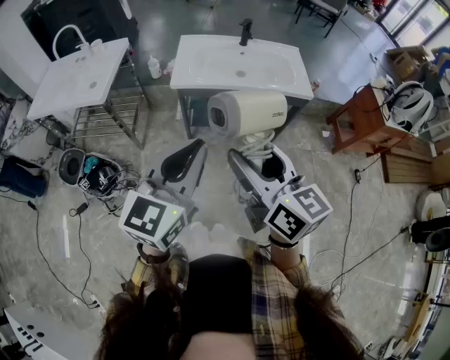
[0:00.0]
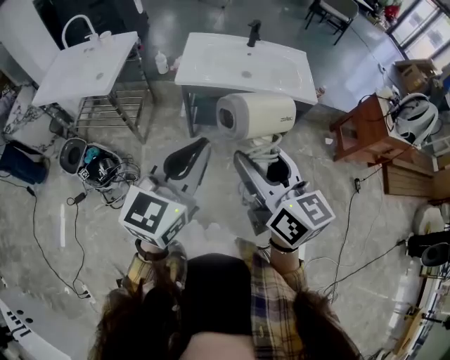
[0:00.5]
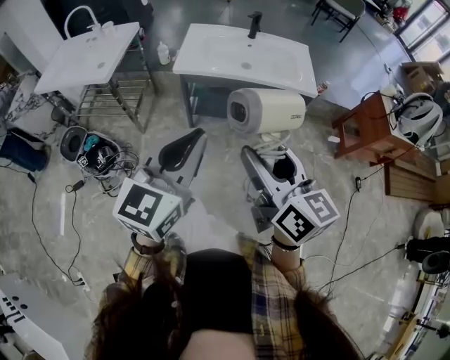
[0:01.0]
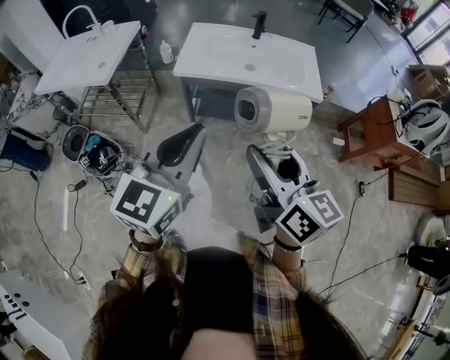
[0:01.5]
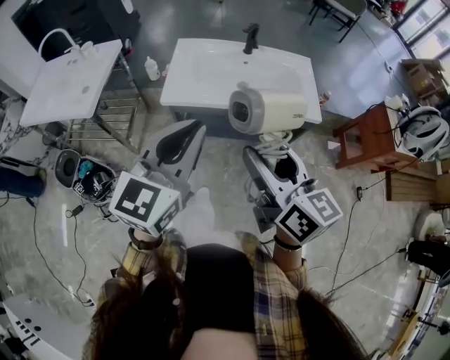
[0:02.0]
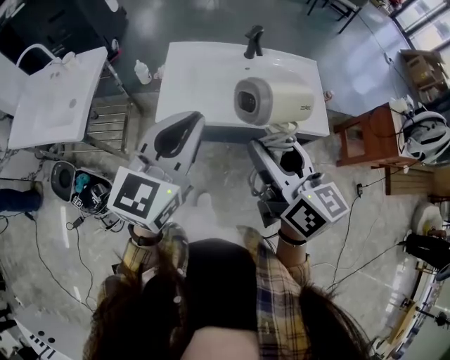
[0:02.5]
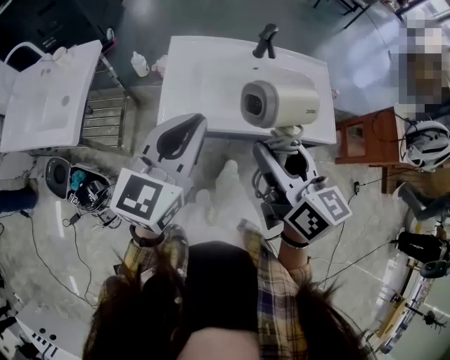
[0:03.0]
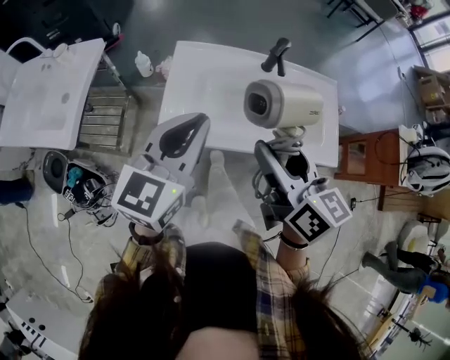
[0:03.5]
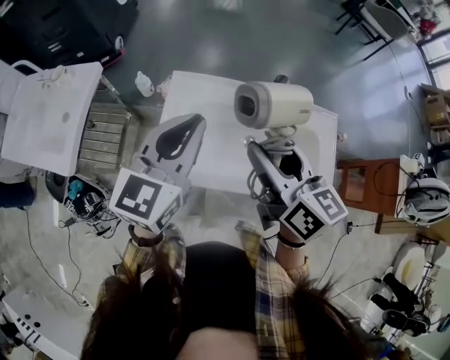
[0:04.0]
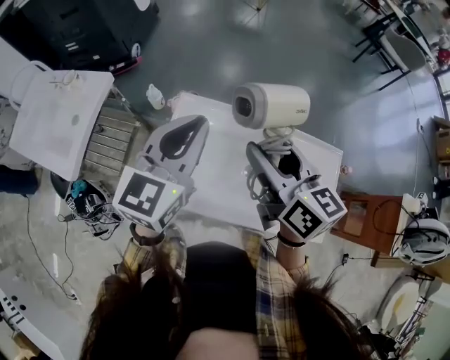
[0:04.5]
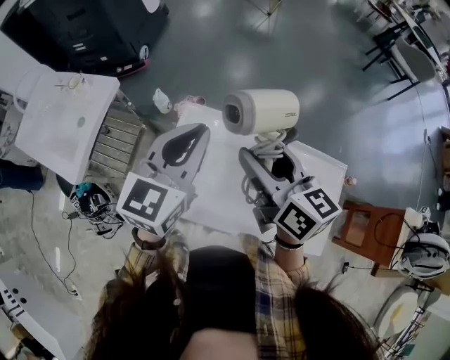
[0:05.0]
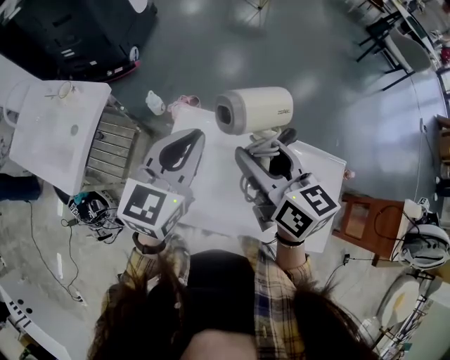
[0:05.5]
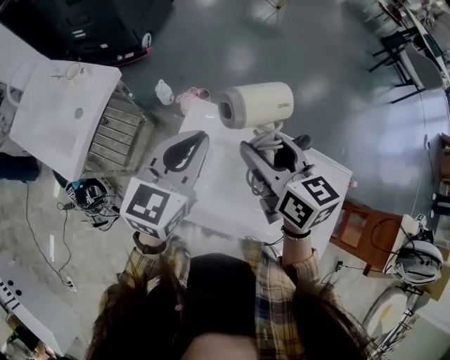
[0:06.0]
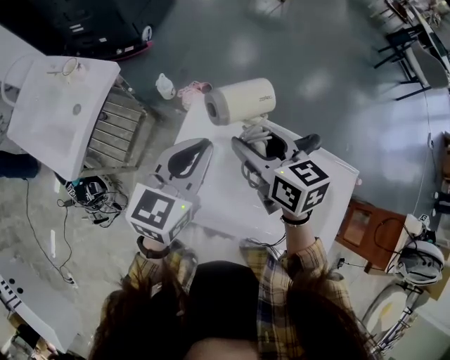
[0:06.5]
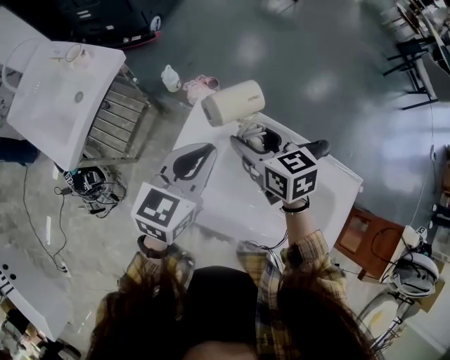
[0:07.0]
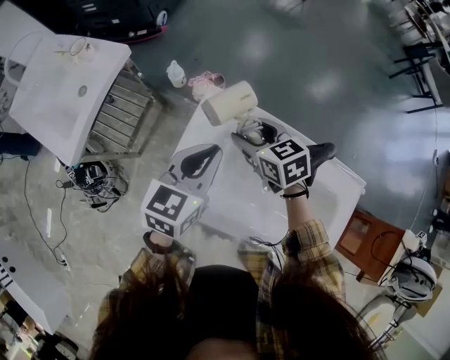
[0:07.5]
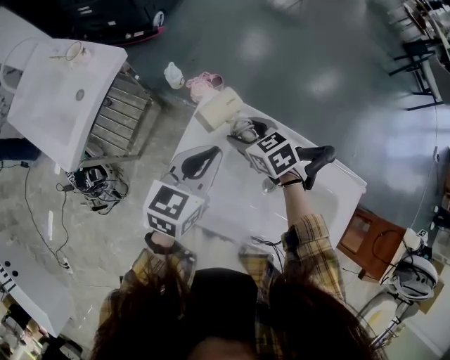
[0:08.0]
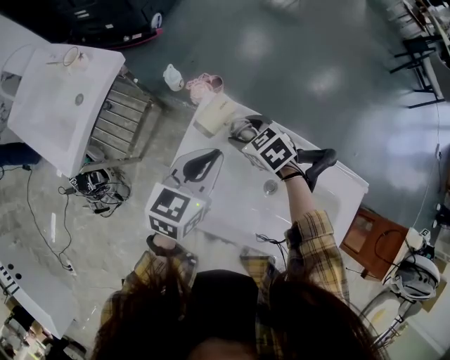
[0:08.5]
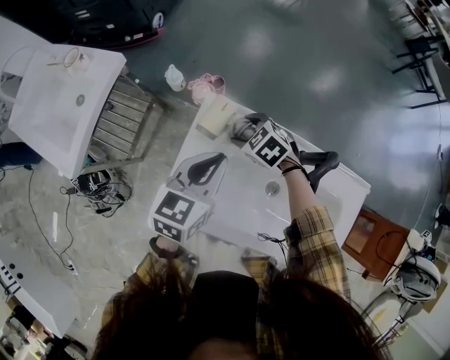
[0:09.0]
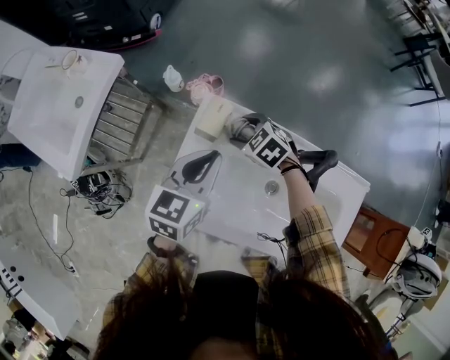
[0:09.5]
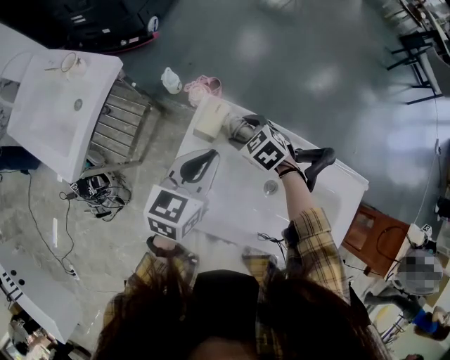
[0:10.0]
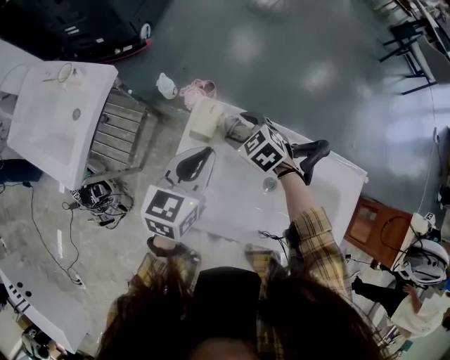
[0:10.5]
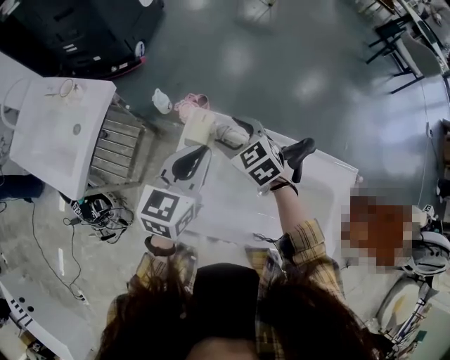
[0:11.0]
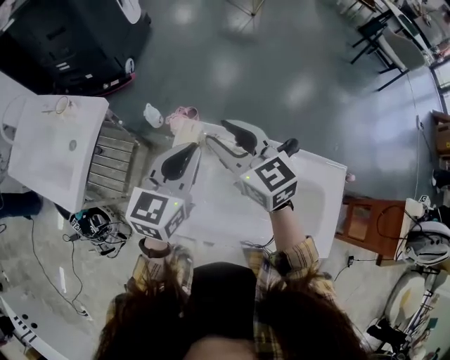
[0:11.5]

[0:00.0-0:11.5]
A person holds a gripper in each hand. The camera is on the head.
0:00.0 to 0:02.0: The left gripper moves forward, some 15 cm. The right gripper moves forward and to the right, roughly 15 cm.
0:02.0 to 0:04.0: Both grippers travel together forward, about 35 cm.
0:04.0 to 0:06.0: The grippers both shift forward by approximately 15 cm.
0:06.0 to 0:07.5: The left gripper is displaced downward by approximately 10 cm, while the right gripper moves downward, roughly 20 cm, and rotates roughly 30 degrees.
0:07.5 to 0:09.5: The right gripper moves downward, approximately 10 cm, and changes its angle by some 30 degrees.
0:09.5 to 0:11.5: The right gripper shifts roughly 25 cm upward, and angles its fingers upward, by about 40 degrees. Meanwhile the left gripper moves upward, some 10 cm.

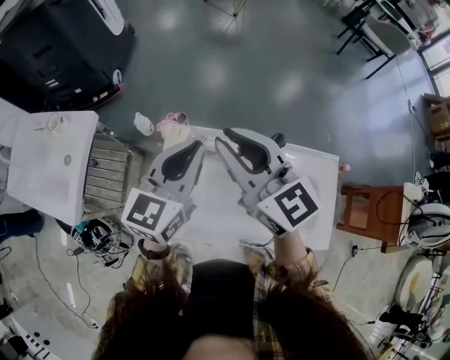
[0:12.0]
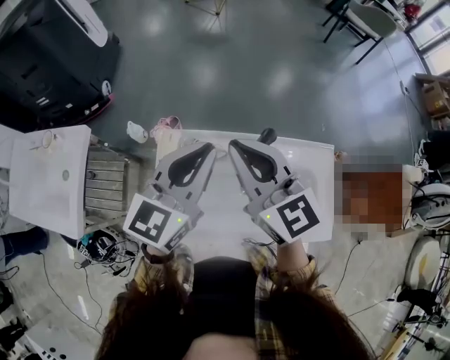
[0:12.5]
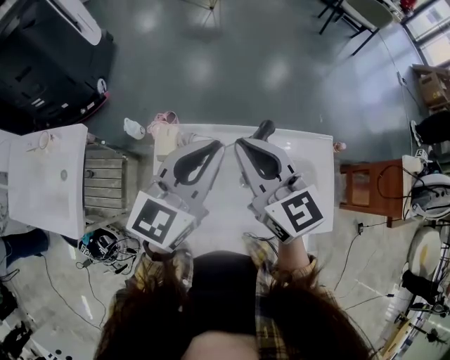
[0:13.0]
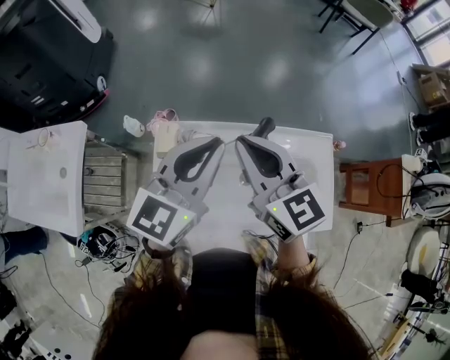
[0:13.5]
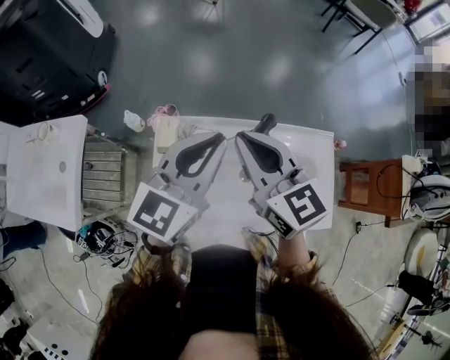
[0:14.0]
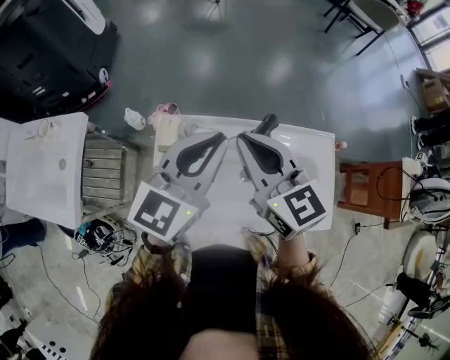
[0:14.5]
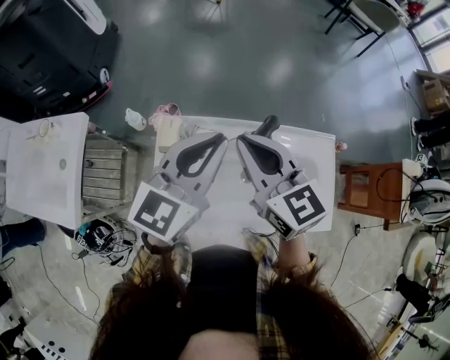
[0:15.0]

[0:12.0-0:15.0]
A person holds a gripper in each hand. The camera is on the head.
0:12.0 to 0:13.5: The grippers both shift to the right by about 5 cm.
0:13.5 to 0:15.0: Both grippers stay about where they are.

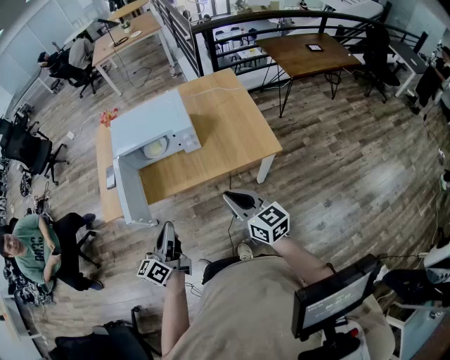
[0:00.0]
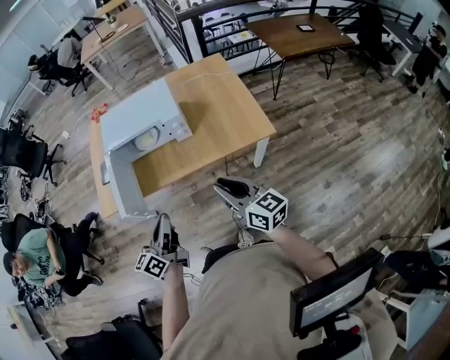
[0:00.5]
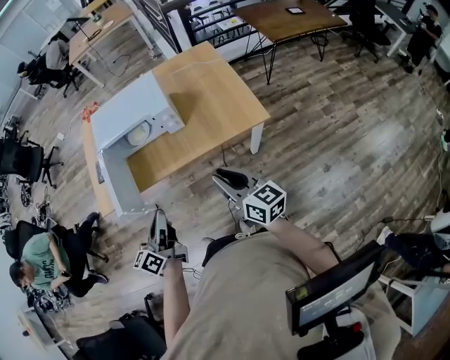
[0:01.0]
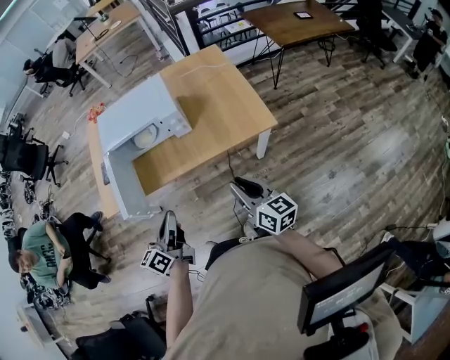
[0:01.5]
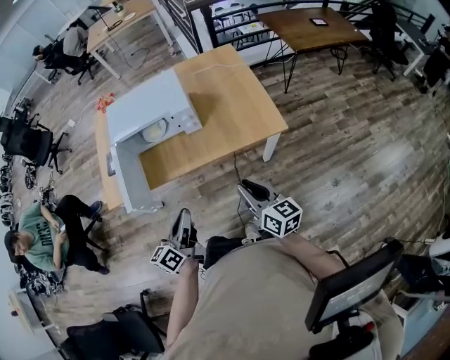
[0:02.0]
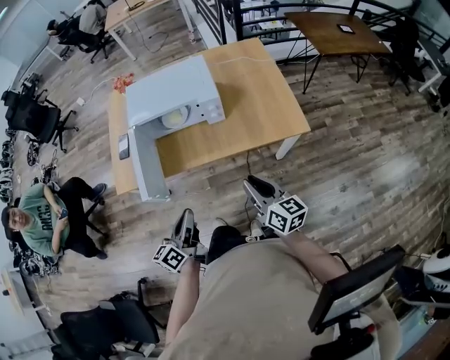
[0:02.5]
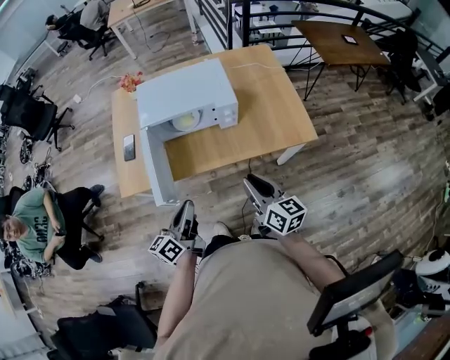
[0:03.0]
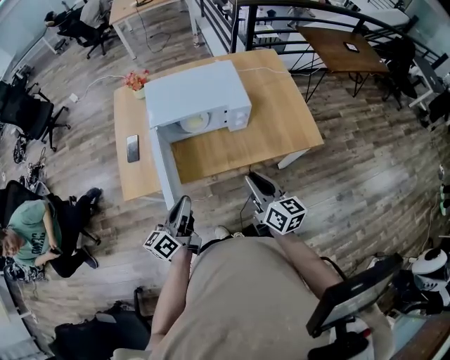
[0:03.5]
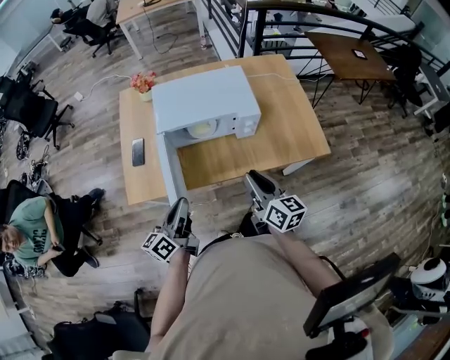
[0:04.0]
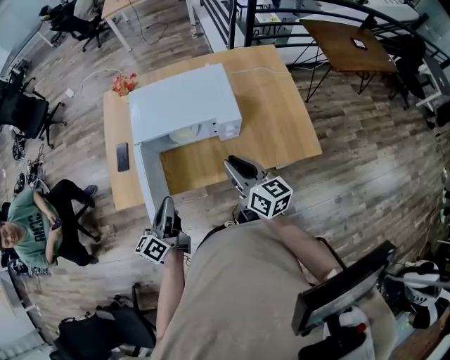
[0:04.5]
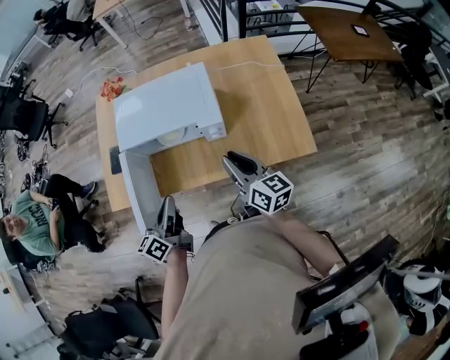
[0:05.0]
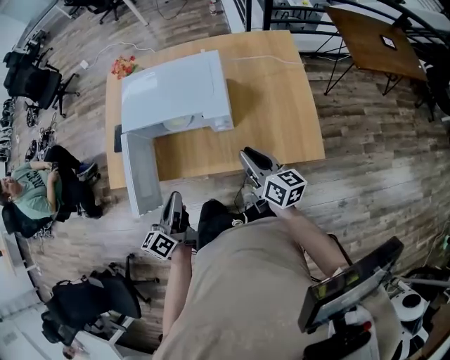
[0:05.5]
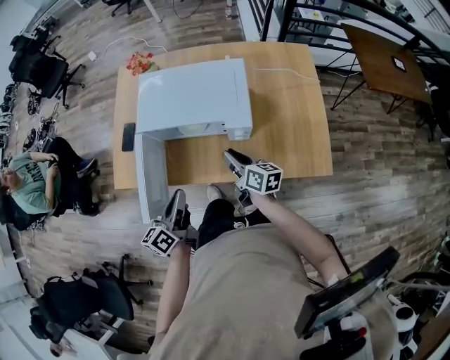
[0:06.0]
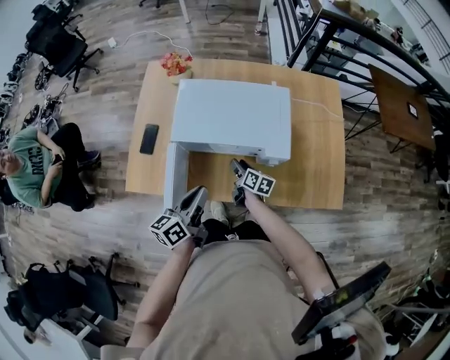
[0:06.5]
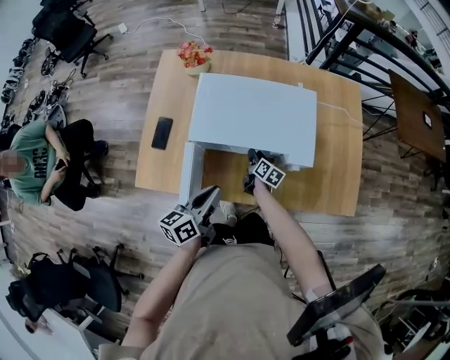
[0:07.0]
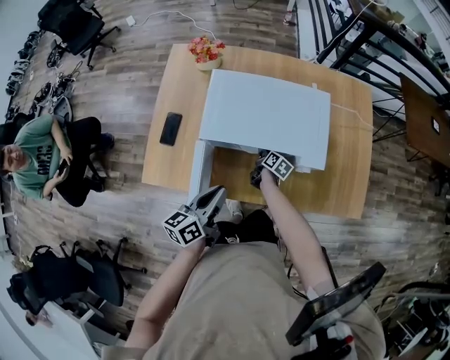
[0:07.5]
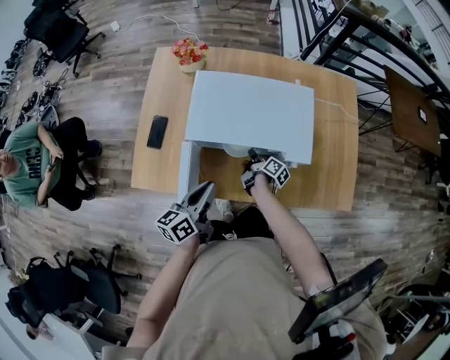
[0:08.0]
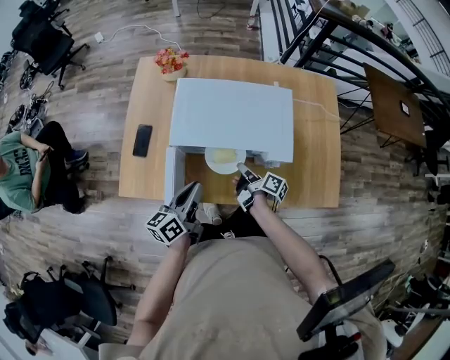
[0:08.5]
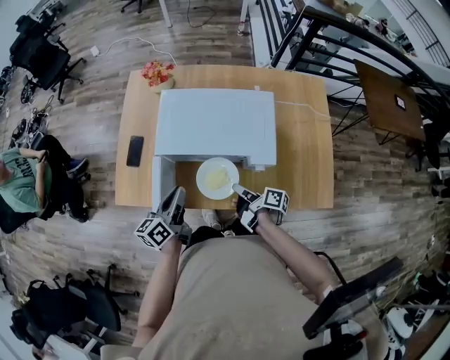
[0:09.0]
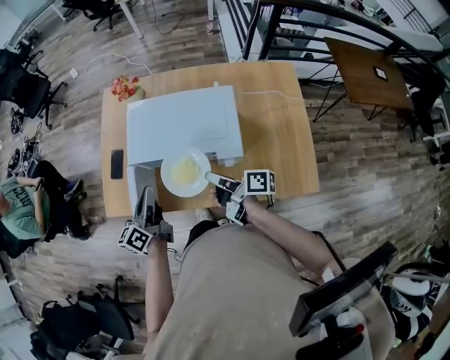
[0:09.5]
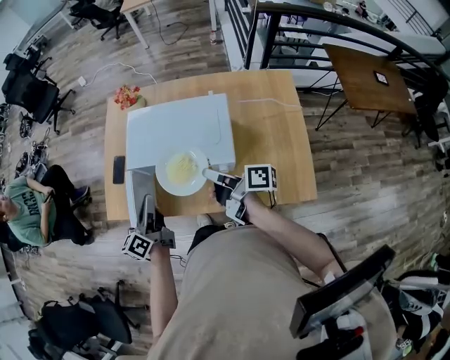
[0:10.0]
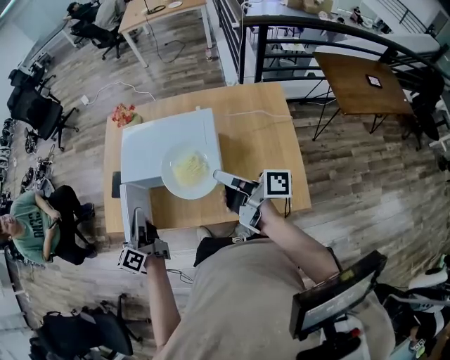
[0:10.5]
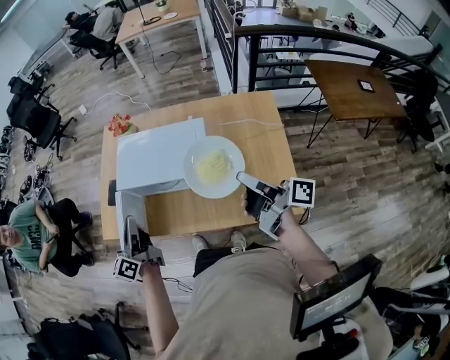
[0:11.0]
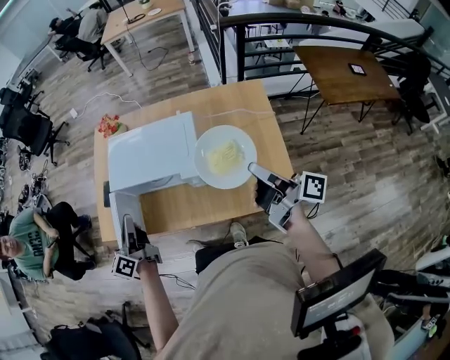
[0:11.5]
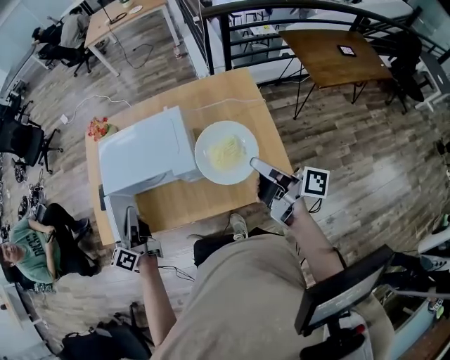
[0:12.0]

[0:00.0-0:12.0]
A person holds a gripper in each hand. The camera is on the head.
0:00.0 to 0:02.0: The left gripper is displaced to the right by some 5 cm. Meanwhile the right gripper is displaced downward by some 5 cm.
0:02.0 to 0:04.0: Both grippers move to the left and forward, some 25 cm.
0:04.0 to 0:06.0: The right gripper travels forward and downward by roughly 20 cm, goes to the right and returns, some 20 cm each way, and rotates about 30 degrees. The left gripper is displaced to the right and forward by some 15 cm.
0:06.0 to 0:08.0: The right gripper moves downward, forward and to the left, roughly 25 cm, and rotates some 40 degrees; the left gripper shifts approximately 15 cm forward and to the left.
0:08.0 to 0:10.0: The left gripper moves upward, roughly 5 cm, and rotates about 20 degrees. Meanwhile the right gripper moves upward, some 30 cm, and turns by approximately 40 degrees.
0:10.0 to 0:12.0: The left gripper heads to the right, covering roughly 10 cm. Meanwhile the right gripper is displaced to the right and backward by roughly 30 cm, and changes its angle by approximately 20 degrees.
